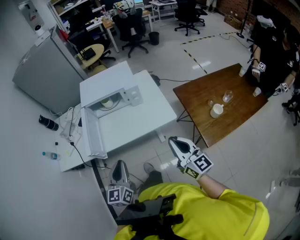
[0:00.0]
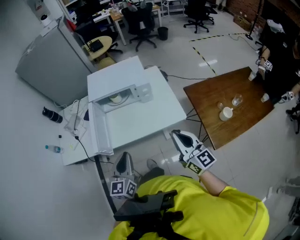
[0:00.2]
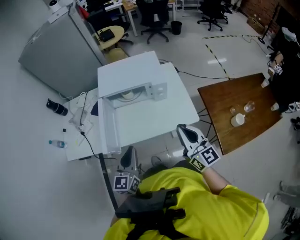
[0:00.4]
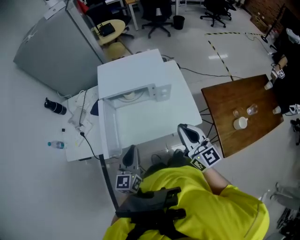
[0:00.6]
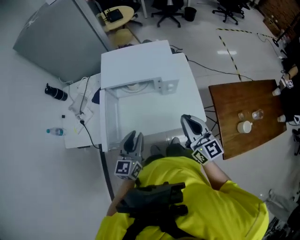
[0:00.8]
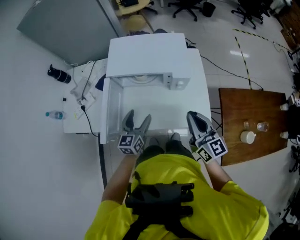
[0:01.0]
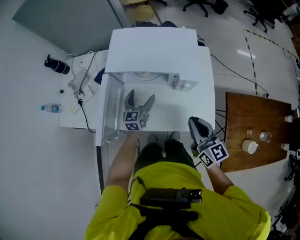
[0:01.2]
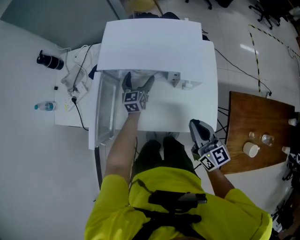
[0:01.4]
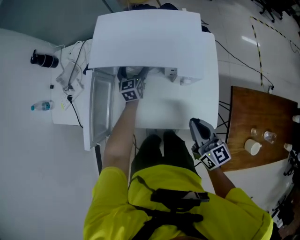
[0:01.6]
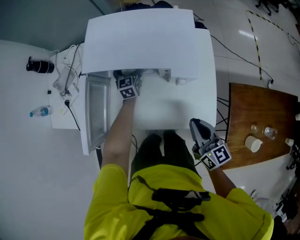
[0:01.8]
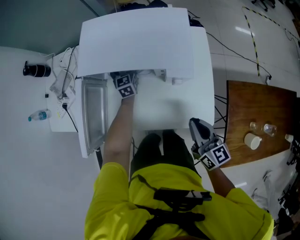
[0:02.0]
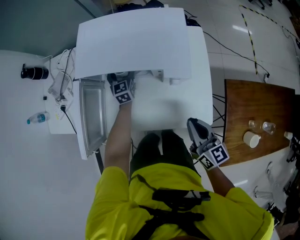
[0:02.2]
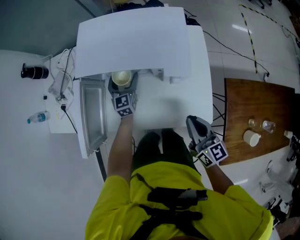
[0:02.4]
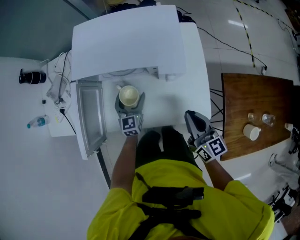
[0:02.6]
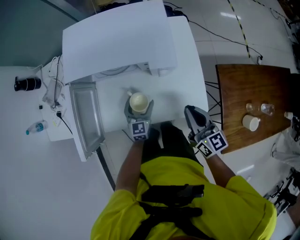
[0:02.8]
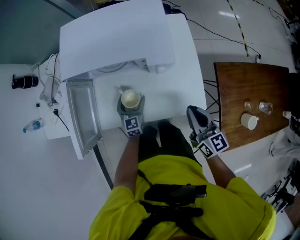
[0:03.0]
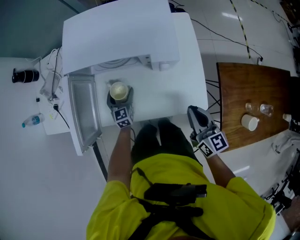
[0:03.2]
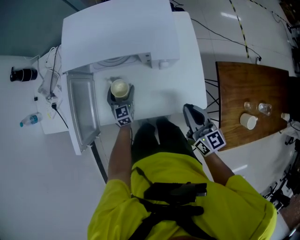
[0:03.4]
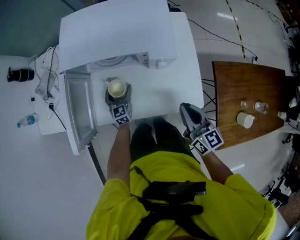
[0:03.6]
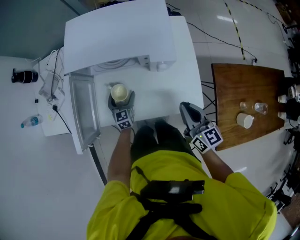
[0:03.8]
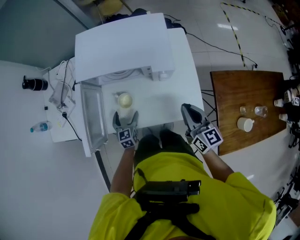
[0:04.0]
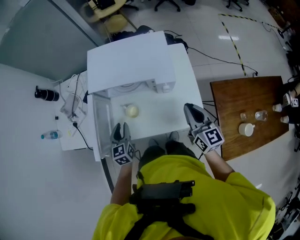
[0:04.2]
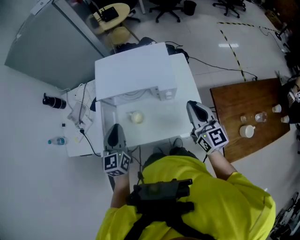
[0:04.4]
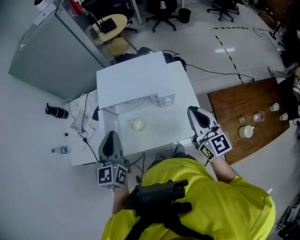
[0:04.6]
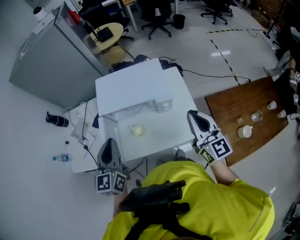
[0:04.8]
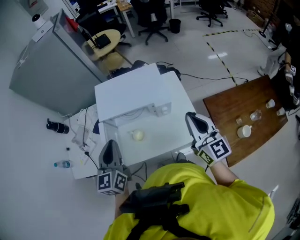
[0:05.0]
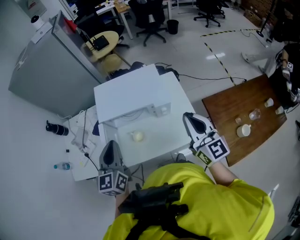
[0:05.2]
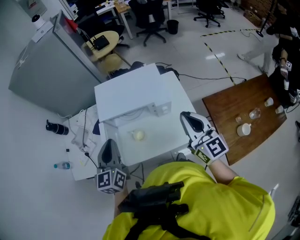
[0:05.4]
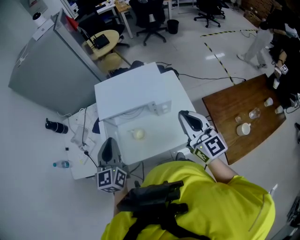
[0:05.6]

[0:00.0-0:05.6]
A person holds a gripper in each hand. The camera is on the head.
0:00.0 to 0:01.4: The left gripper goes some 60 cm forward and downward, and opens up. The right gripper goes about 35 cm forward and downward, and changes its angle by about 20 degrees.
0:01.4 to 0:02.8: The right gripper shifts approximately 5 cm to the right, while the left gripper heads backward and downward, covering roughly 20 cm.
0:02.8 to 0:04.2: The right gripper moves upward, approximately 10 cm. The left gripper travels upward and to the left by approximately 20 cm, and closes its fingers.
0:04.2 to 0:05.6: The right gripper is displaced upward by approximately 15 cm. The left gripper heads upward, covering about 25 cm, and rotates some 20 degrees.

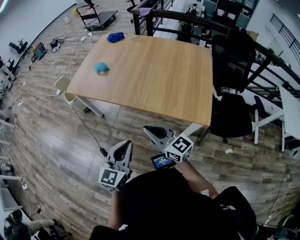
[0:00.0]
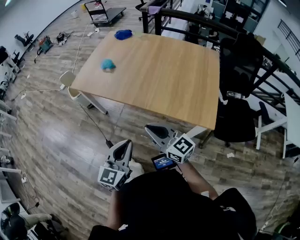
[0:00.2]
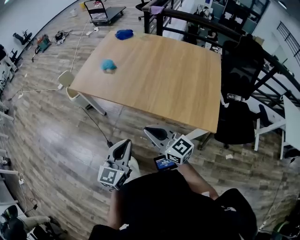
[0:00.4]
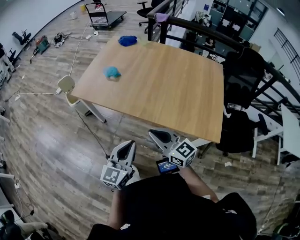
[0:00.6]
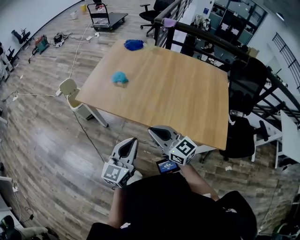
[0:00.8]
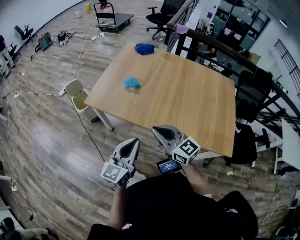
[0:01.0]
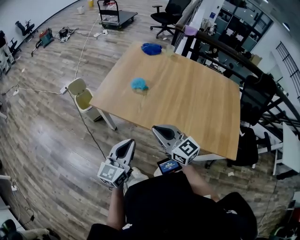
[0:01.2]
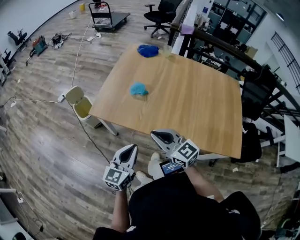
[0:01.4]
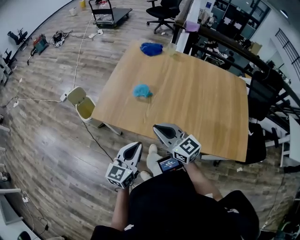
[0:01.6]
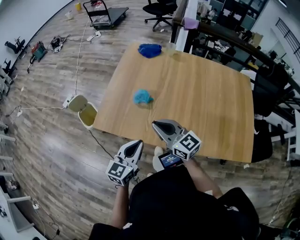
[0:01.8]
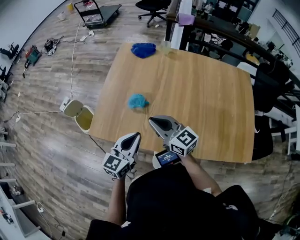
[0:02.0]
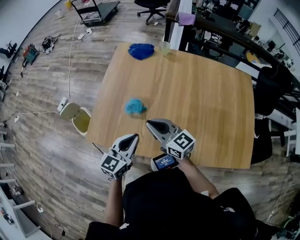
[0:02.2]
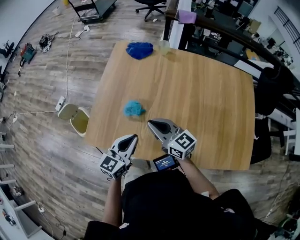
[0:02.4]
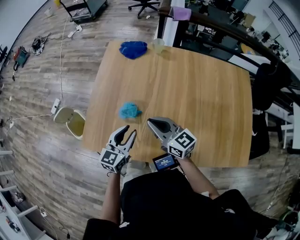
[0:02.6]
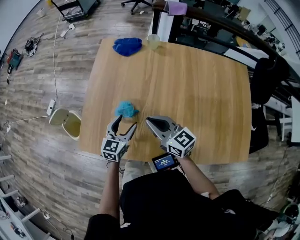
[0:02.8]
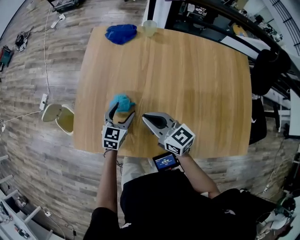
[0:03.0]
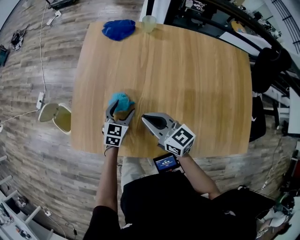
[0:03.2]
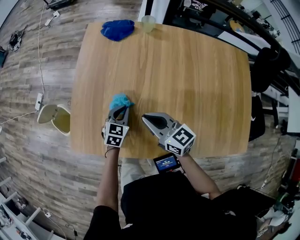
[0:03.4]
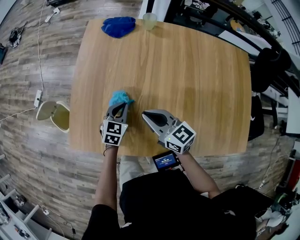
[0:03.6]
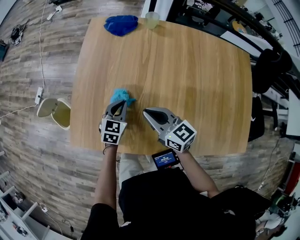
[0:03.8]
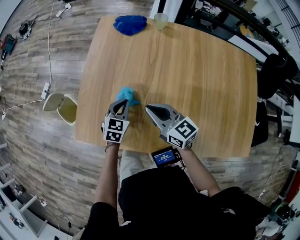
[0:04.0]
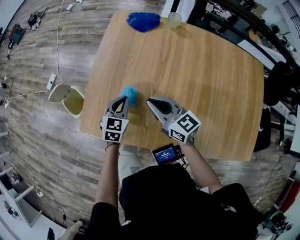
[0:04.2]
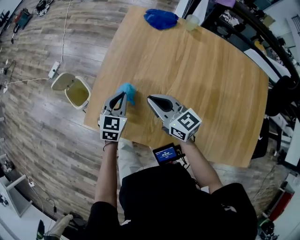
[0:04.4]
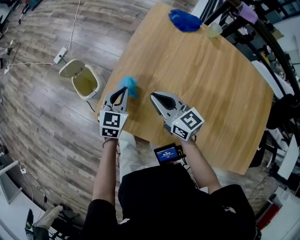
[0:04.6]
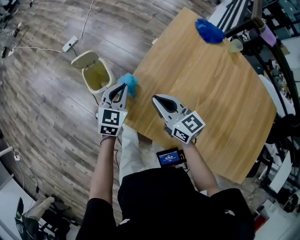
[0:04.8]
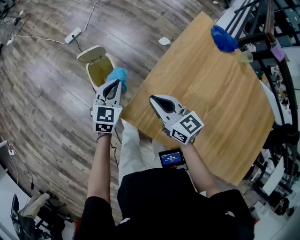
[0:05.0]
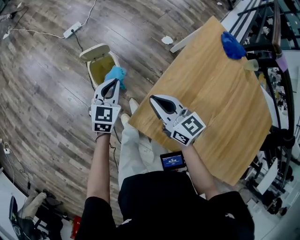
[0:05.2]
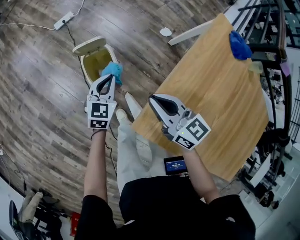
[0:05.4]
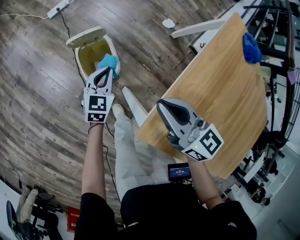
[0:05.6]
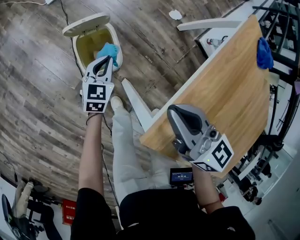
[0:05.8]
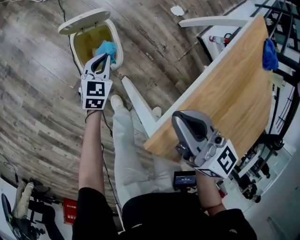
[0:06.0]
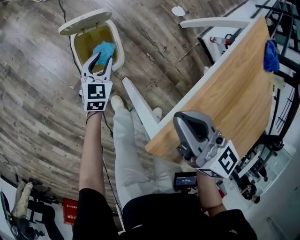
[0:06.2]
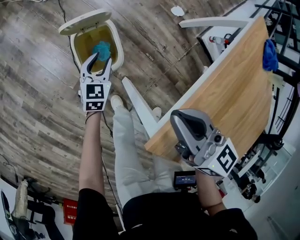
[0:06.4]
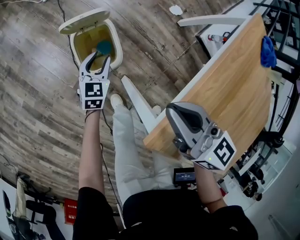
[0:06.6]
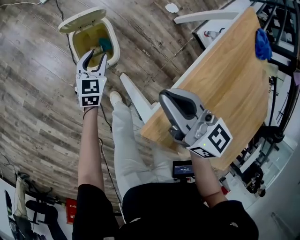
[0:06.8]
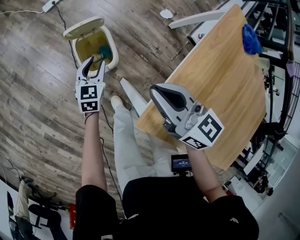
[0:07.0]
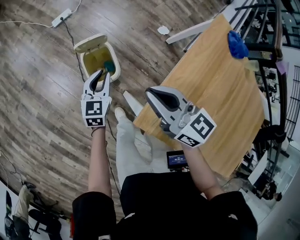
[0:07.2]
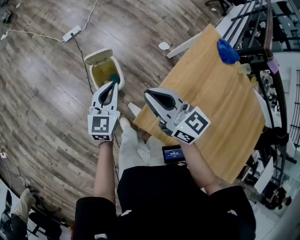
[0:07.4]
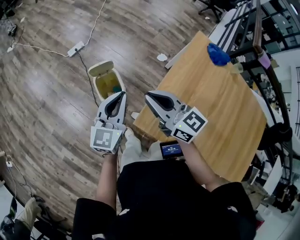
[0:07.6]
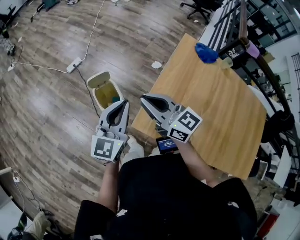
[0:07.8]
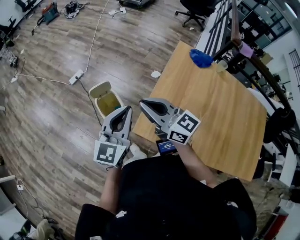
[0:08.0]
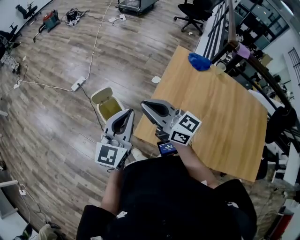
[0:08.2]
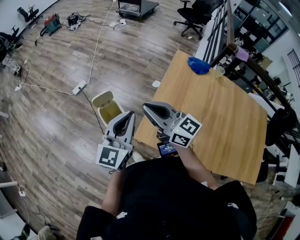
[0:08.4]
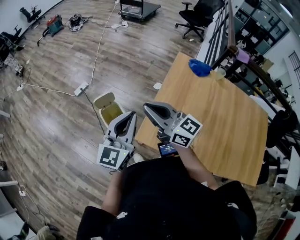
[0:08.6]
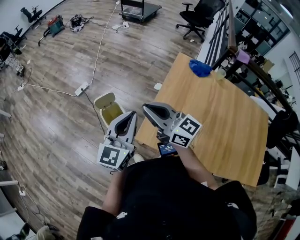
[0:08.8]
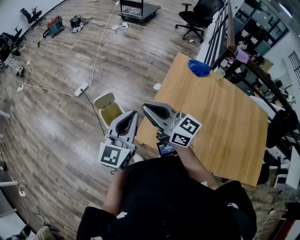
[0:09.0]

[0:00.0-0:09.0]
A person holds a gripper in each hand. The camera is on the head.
0:00.0 to 0:01.6: The pair of grippers is taken forward and to the left, about 40 cm.
0:01.6 to 0:03.0: The right gripper is displaced forward by some 20 cm. The left gripper heads forward and downward, covering roughly 35 cm, swivels some 30 degrees, and opens its fingers.
0:03.0 to 0:04.4: Both grippers travel together to the left, approximately 10 cm. The left gripper closes up.
0:04.4 to 0:06.0: The pair of grippers is taken to the left and forward, about 40 cm. The left gripper shifts about 35 cm downward, and rotates approximately 30 degrees.
0:06.0 to 0:07.6: The left gripper travels upward by about 50 cm, points its fingers approximately 30 degrees further upward, and opens, then closes again. The right gripper travels upward by roughly 20 cm.
0:07.6 to 0:09.0: The left gripper shifts about 15 cm upward, backward and to the right; the right gripper heads upward and backward, covering approximately 10 cm.

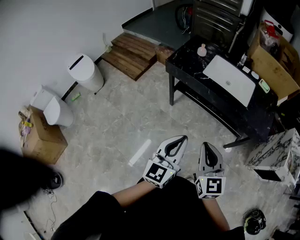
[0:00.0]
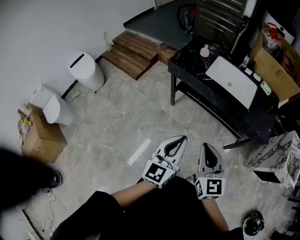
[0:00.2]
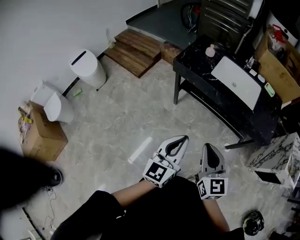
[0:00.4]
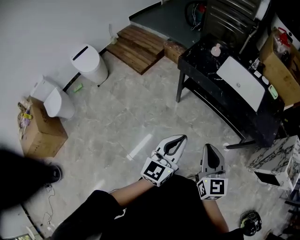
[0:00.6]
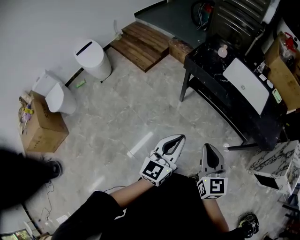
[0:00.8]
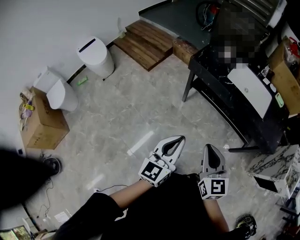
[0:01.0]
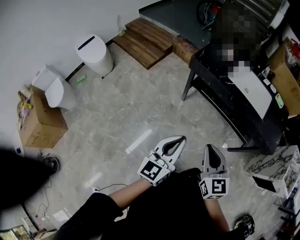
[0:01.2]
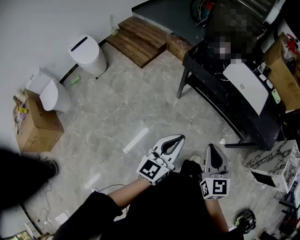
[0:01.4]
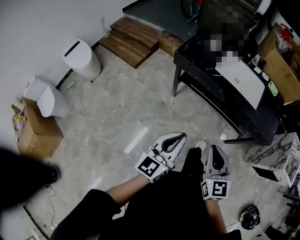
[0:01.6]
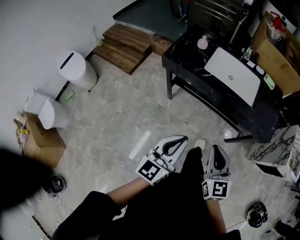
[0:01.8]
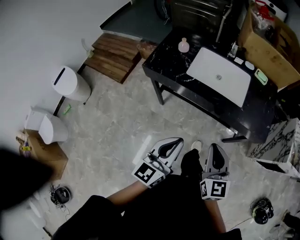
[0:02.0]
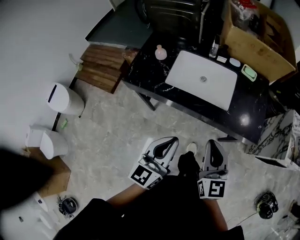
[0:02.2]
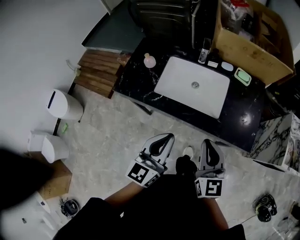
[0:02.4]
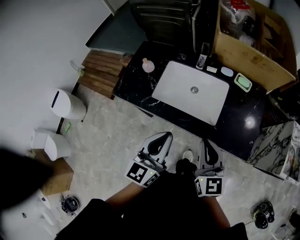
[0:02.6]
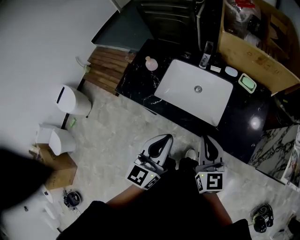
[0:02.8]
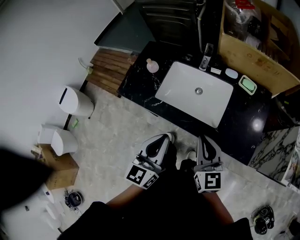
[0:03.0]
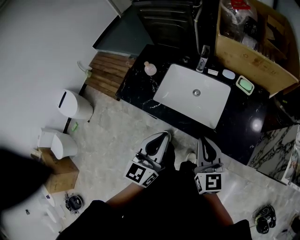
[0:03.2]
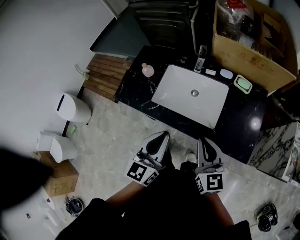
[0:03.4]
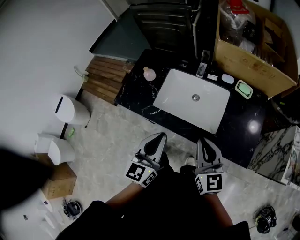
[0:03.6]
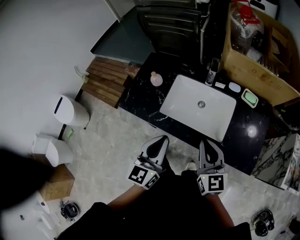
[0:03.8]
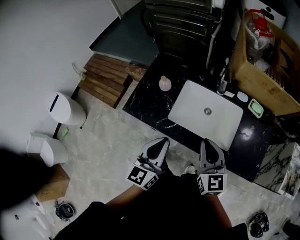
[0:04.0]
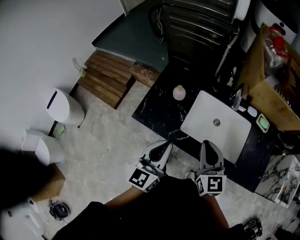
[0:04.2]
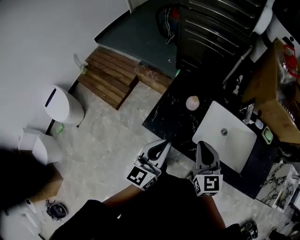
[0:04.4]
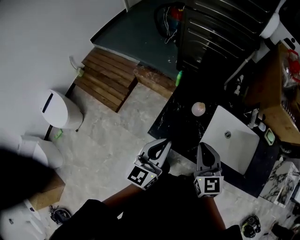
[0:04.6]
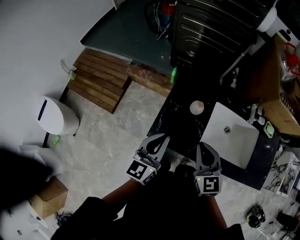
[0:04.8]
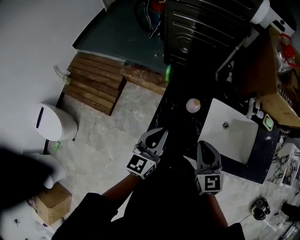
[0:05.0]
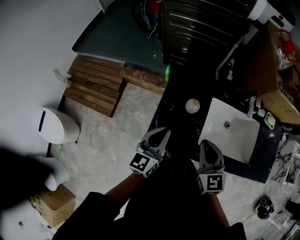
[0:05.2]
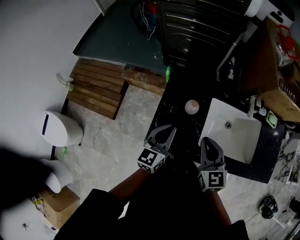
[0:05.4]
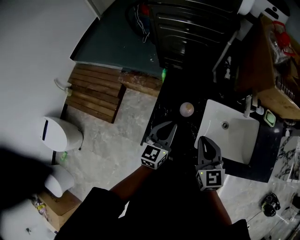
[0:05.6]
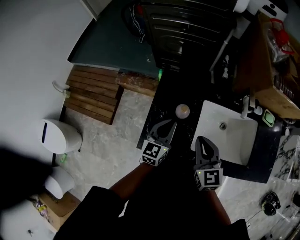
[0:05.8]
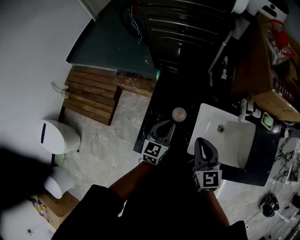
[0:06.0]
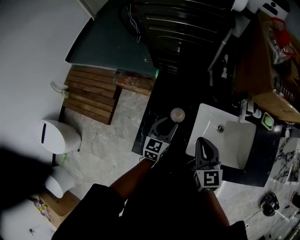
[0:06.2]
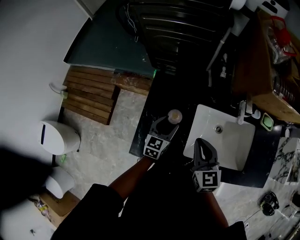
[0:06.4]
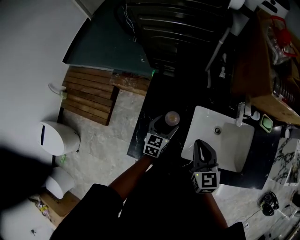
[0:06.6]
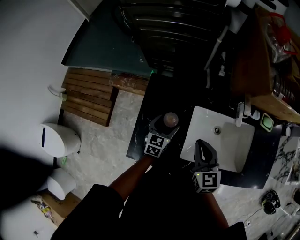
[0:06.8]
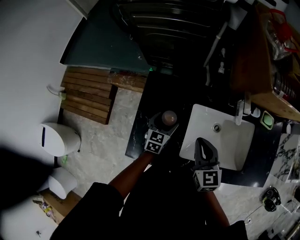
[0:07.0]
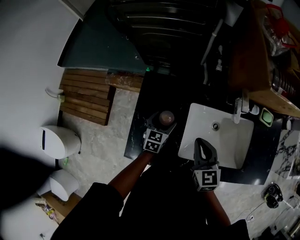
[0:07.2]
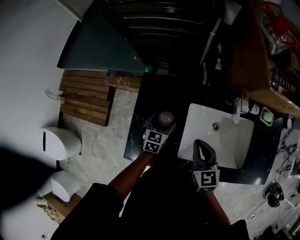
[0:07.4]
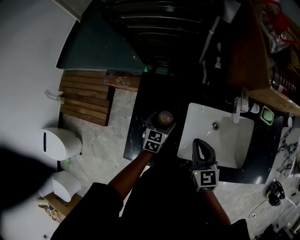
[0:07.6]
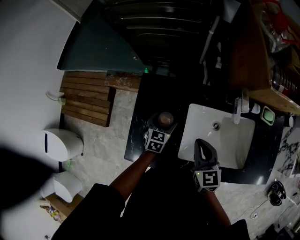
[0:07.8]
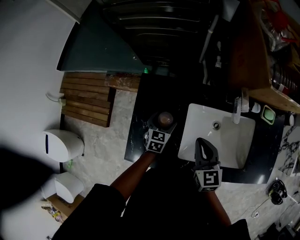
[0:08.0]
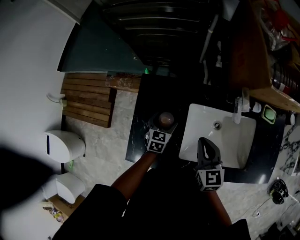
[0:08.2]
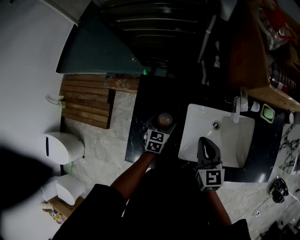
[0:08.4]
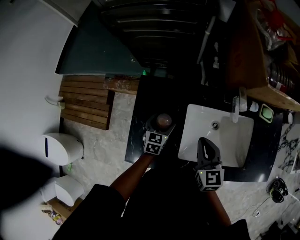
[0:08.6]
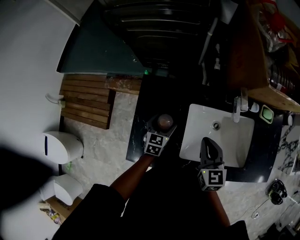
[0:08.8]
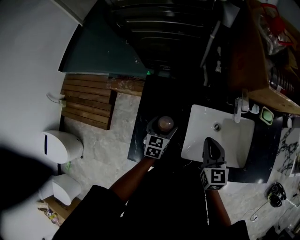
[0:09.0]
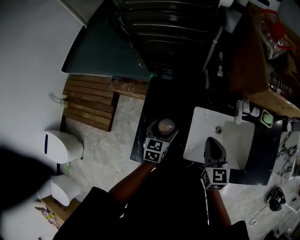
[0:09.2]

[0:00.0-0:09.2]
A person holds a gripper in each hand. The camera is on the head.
0:00.0 to 0:01.6: The left gripper heads to the left, covering some 10 cm. Meanwhile the right gripper reaches roughly 10 cm to the left, then returns.
0:01.6 to 0:03.0: Both grippers travel together forward and to the right, about 40 cm.
0:03.0 to 0:04.6: The pair of grippers is taken to the left and forward, about 40 cm.
0:04.6 to 0:06.2: The left gripper is displaced forward, downward and to the right by about 25 cm, and rotates approximately 20 degrees. The right gripper shifts some 15 cm forward, to the right and downward.
0:06.2 to 0:07.6: The left gripper moves downward and forward, about 10 cm, and opens its fingers. Meanwhile the right gripper changes place by approximately 5 cm.
0:07.6 to 0:09.2: The left gripper is displaced upward by approximately 5 cm.
